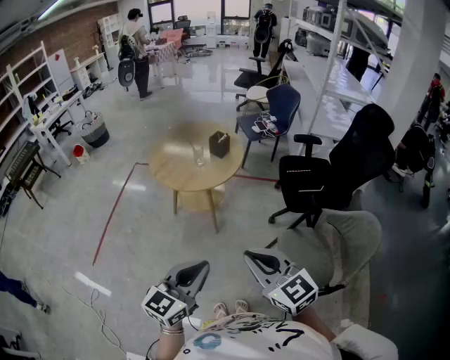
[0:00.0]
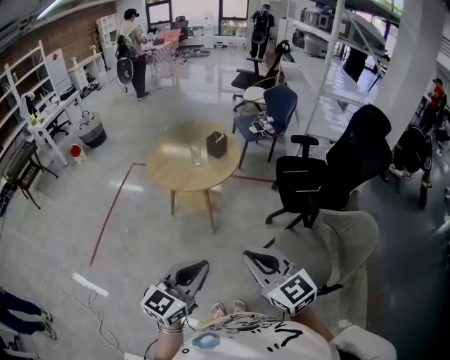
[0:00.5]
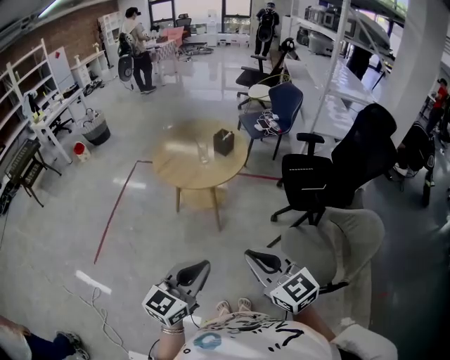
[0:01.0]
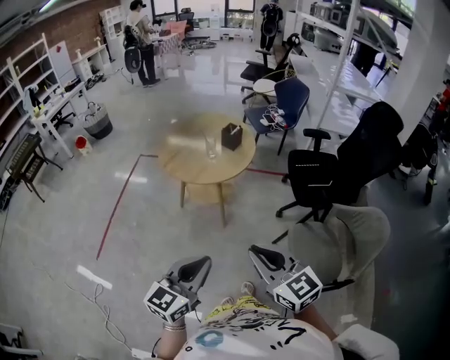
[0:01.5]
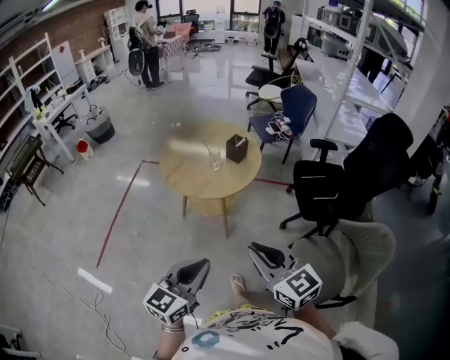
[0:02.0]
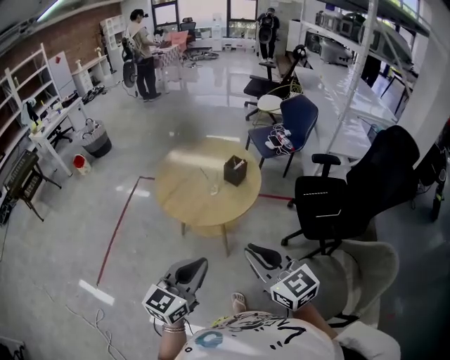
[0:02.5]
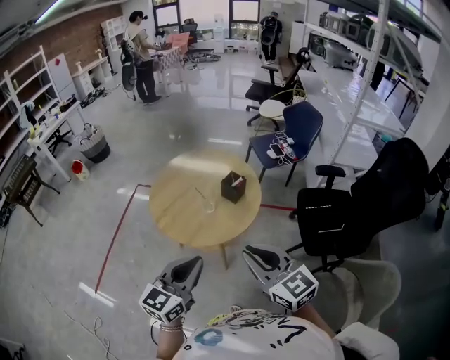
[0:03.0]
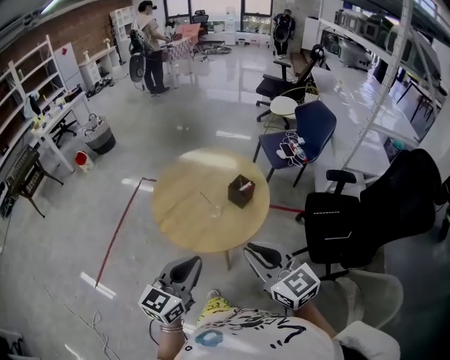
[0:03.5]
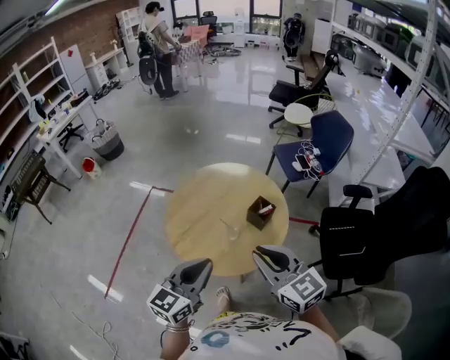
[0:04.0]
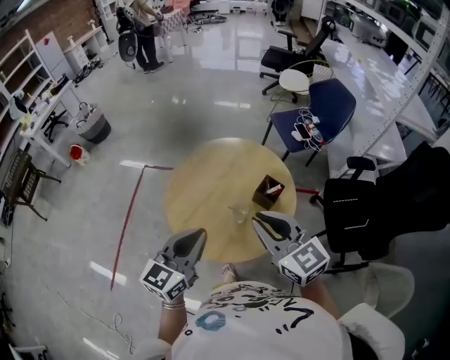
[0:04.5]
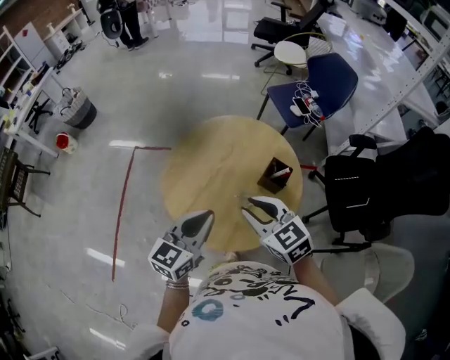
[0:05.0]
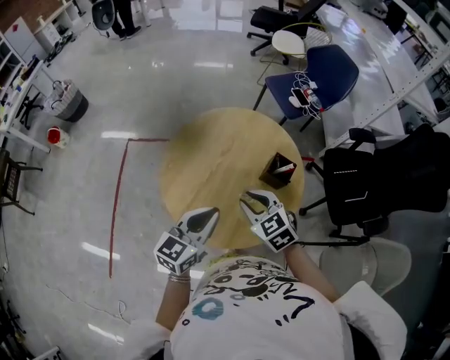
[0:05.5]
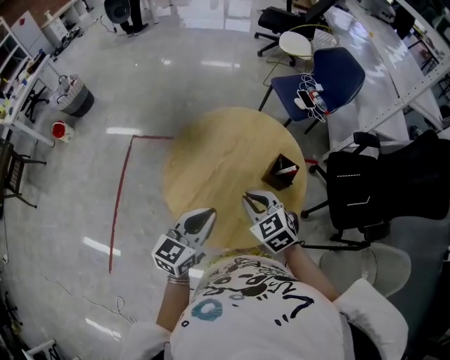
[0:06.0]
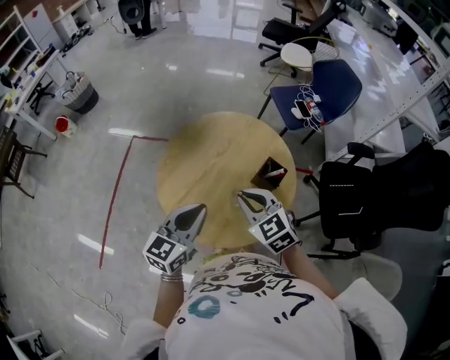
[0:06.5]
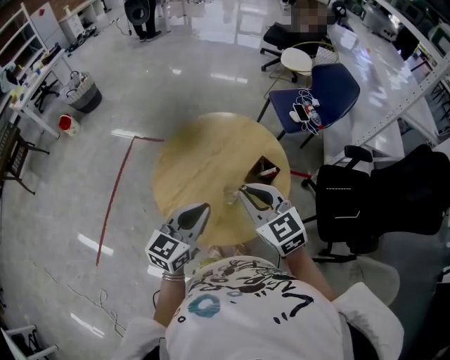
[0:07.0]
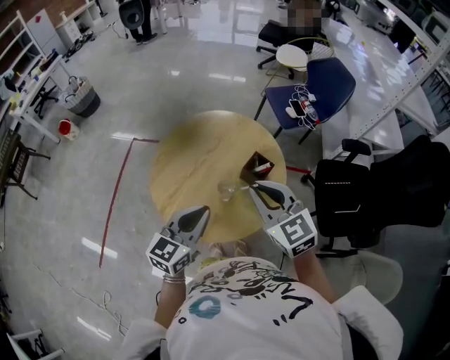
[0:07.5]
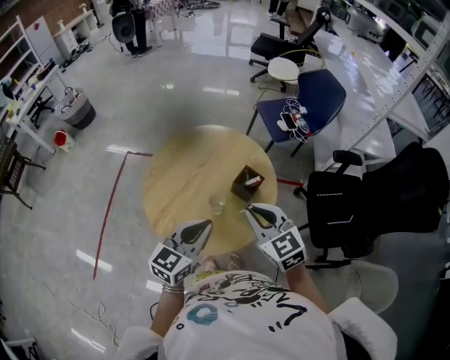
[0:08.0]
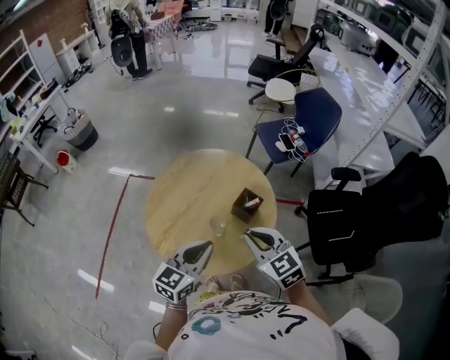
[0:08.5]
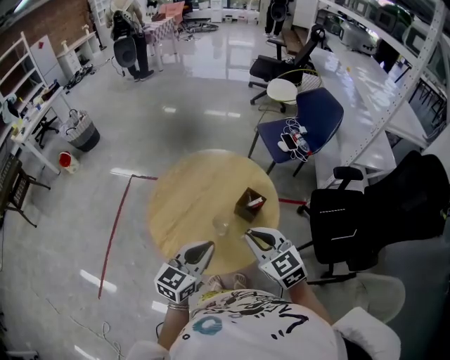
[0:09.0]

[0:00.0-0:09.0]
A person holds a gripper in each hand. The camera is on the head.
0:00.0 to 0:02.0: Both grippers move forward and to the left, about 10 cm.
0:02.0 to 0:04.5: The pair of grippers is taken forward, approximately 50 cm.
0:04.5 to 0:07.0: The right gripper travels downward and forward by about 10 cm. Meanwhile the left gripper goes about 5 cm downward.
0:07.0 to 0:09.0: The right gripper travels to the right by some 5 cm; the left gripper ends up about 5 cm from where it was.

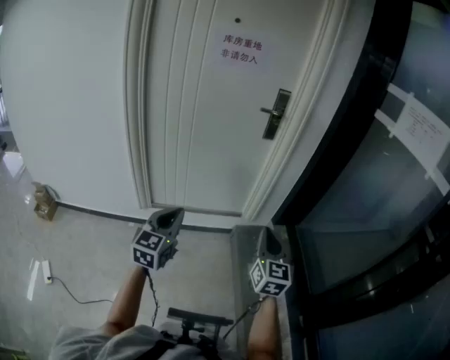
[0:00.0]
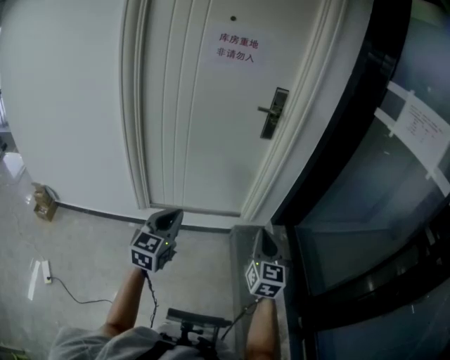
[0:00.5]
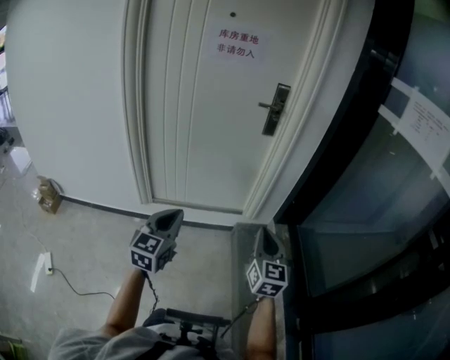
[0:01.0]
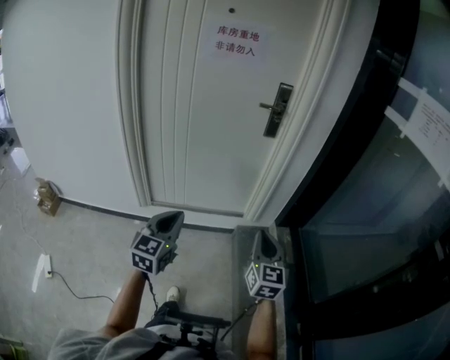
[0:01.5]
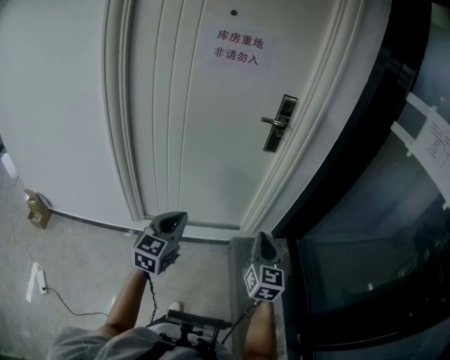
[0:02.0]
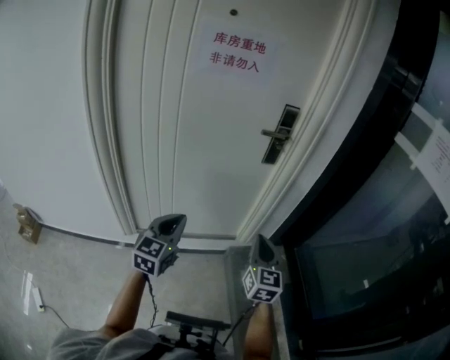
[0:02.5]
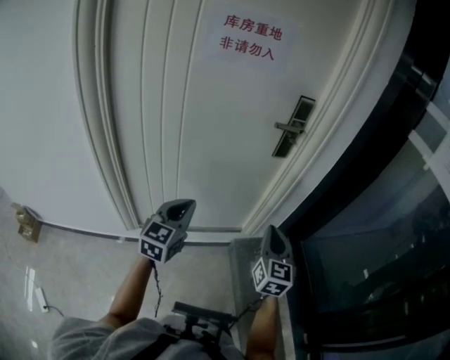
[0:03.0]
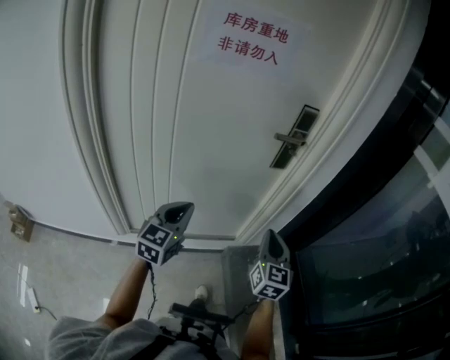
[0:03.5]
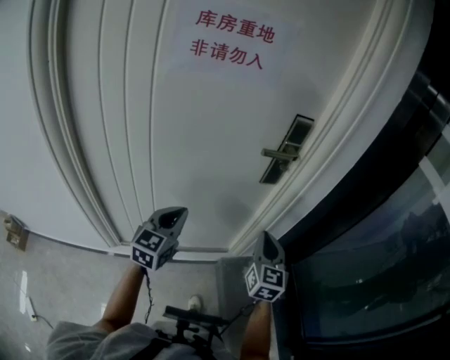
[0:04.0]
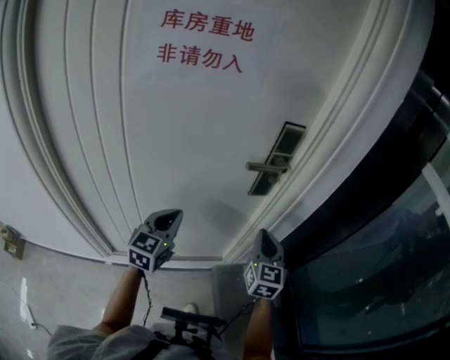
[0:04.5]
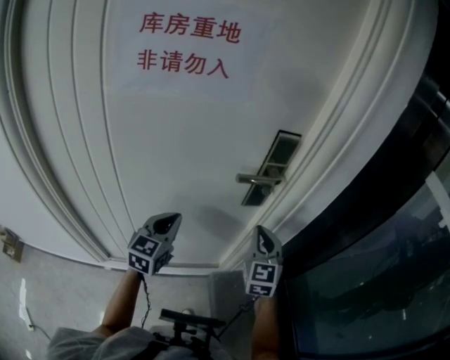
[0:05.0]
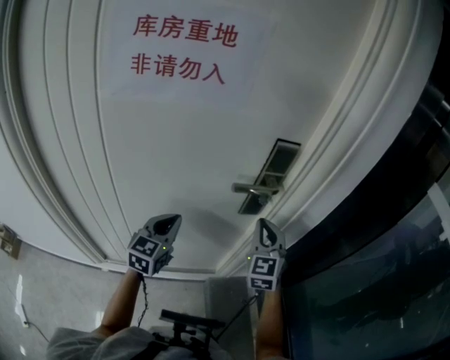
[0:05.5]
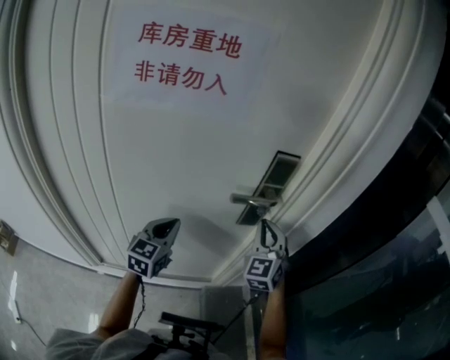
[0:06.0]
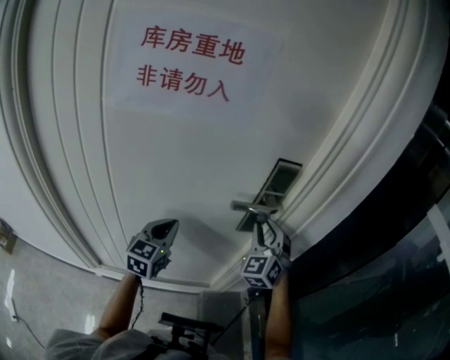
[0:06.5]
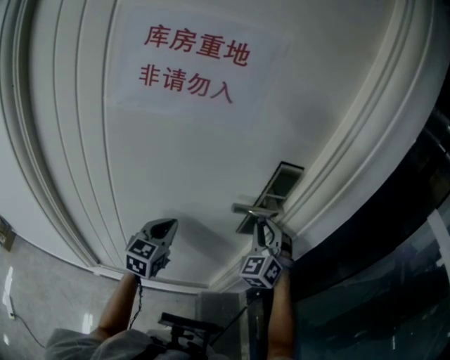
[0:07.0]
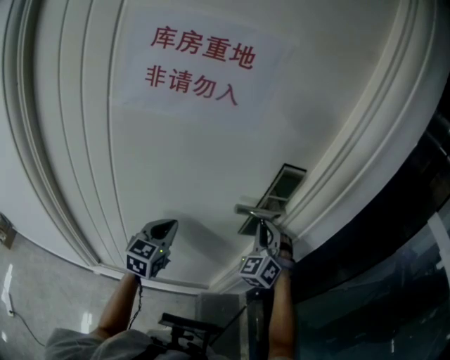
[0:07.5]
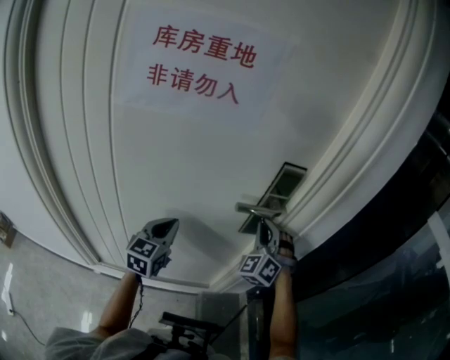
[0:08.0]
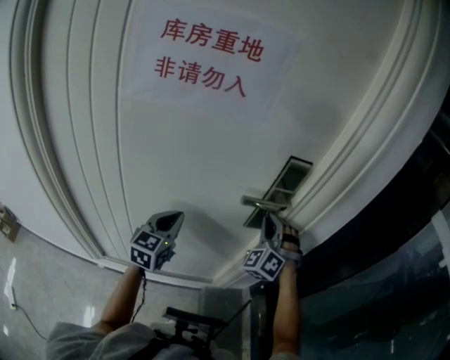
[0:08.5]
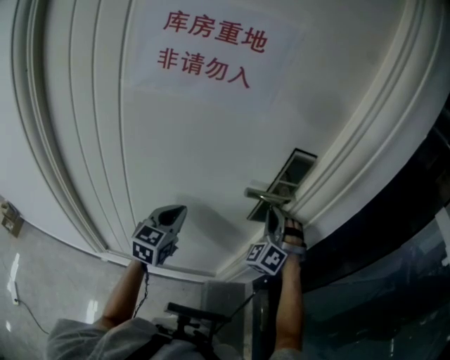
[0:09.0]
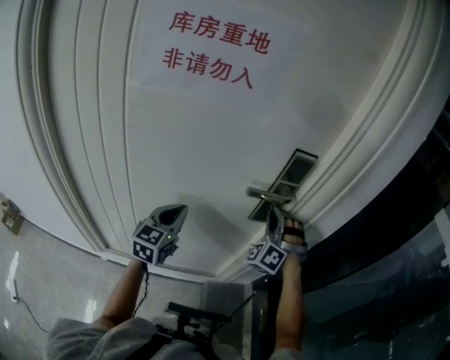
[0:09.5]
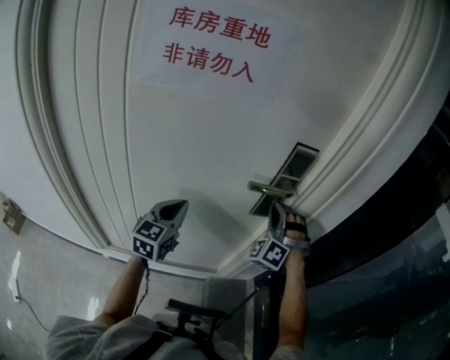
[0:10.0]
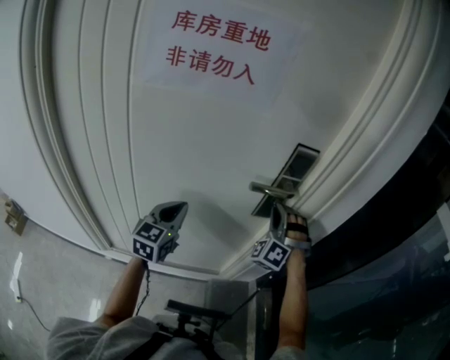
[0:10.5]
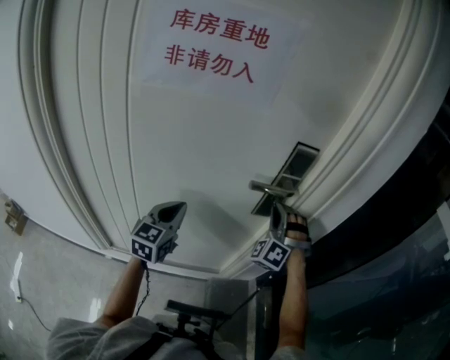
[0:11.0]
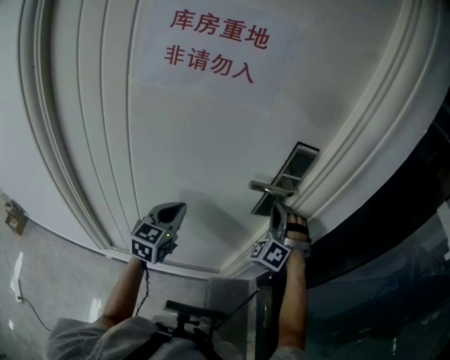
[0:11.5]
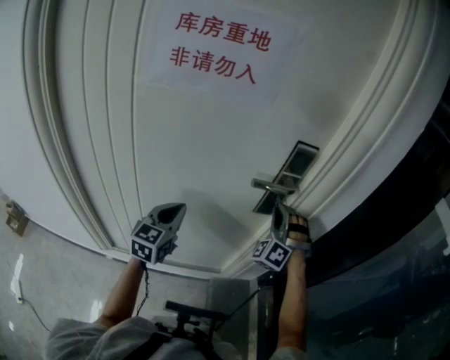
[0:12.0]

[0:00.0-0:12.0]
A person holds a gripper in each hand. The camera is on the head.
0:00.0 to 0:02.0: Both grippers move forward, approximately 15 cm.
0:02.0 to 0:04.0: The grippers both shift forward by some 30 cm.
0:04.0 to 0:06.0: The two grippers go about 20 cm forward. The right gripper turns by about 30 degrees.
0:06.0 to 0:08.0: The right gripper rotates roughly 30 degrees.
0:10.0 to 0:12.0: The grippers make only small movements.

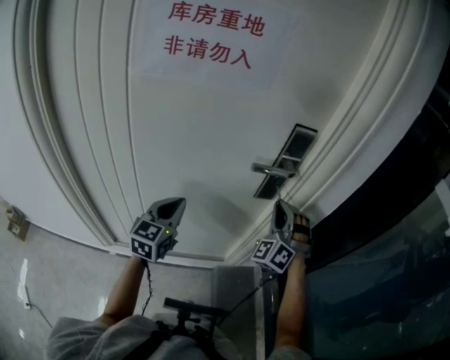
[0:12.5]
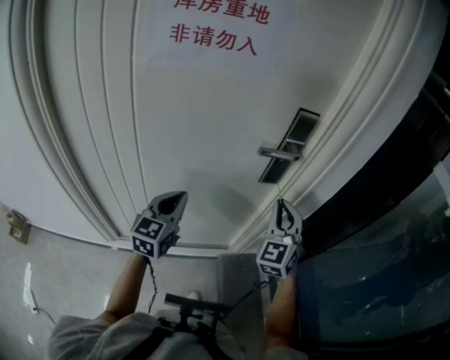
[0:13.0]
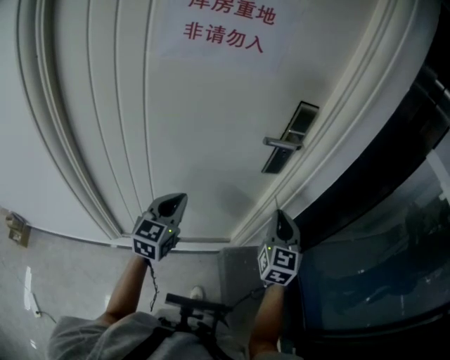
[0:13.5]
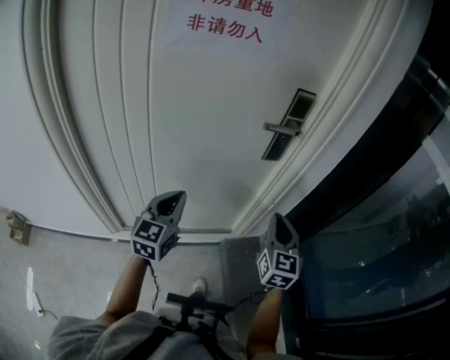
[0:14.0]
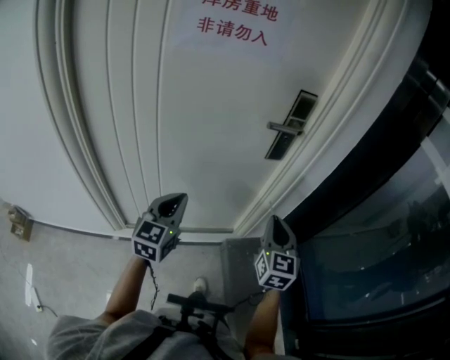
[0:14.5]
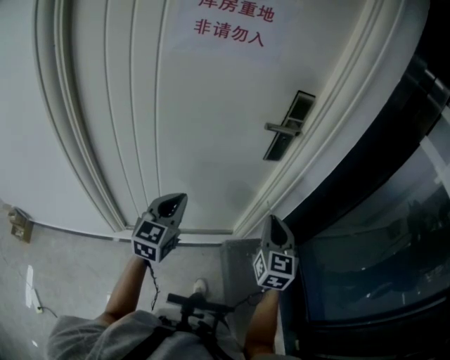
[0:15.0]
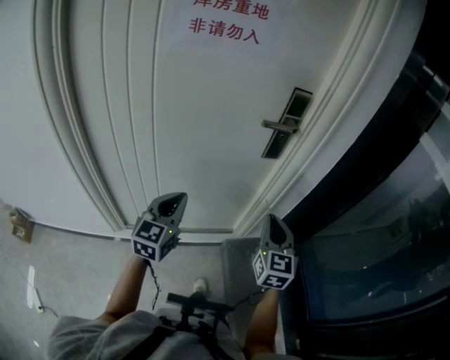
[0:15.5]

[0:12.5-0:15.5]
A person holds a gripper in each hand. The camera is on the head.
0:12.5 to 0:14.0: The left gripper goes roughly 10 cm backward, while the right gripper shifts about 20 cm backward, and rolls clockwise, seen from behind, by approximately 70 degrees.
0:14.0 to 0:15.5: There are only small adjustments of the grippers.

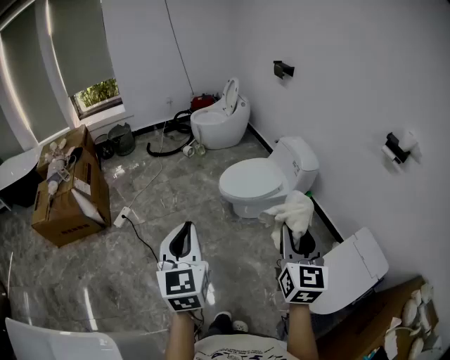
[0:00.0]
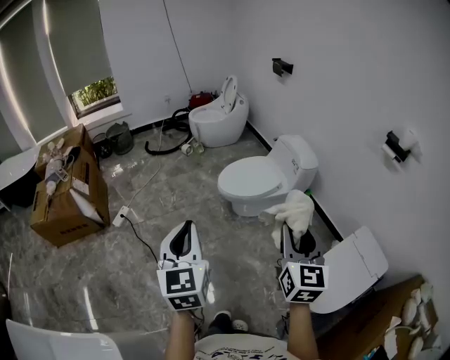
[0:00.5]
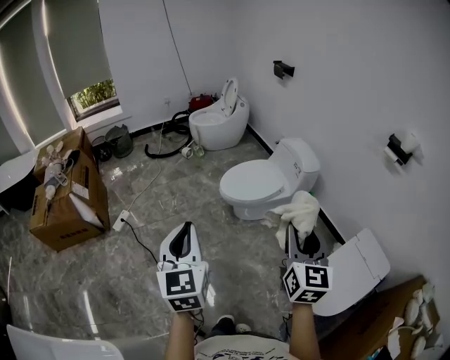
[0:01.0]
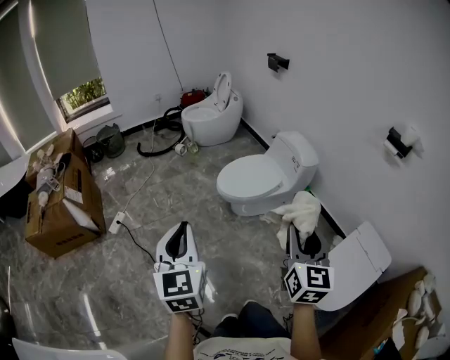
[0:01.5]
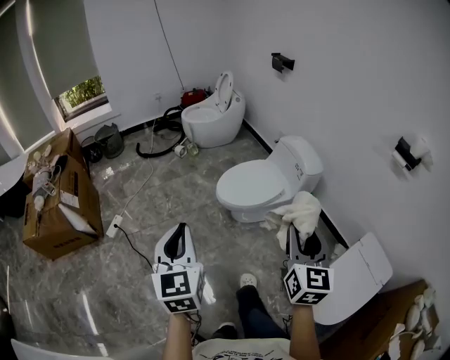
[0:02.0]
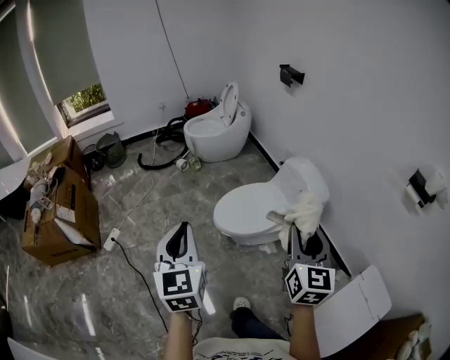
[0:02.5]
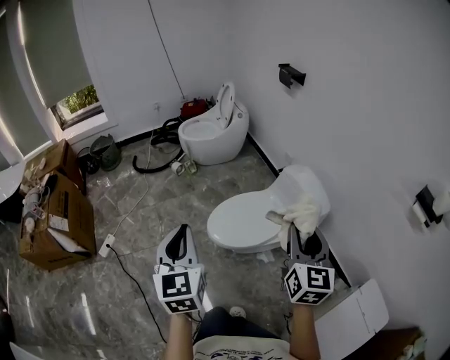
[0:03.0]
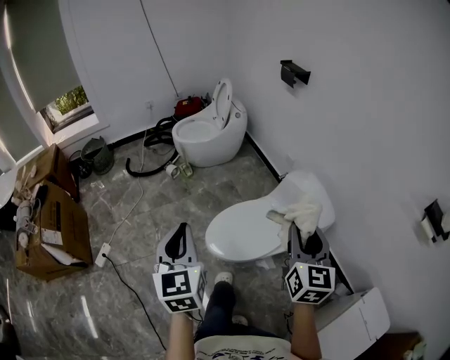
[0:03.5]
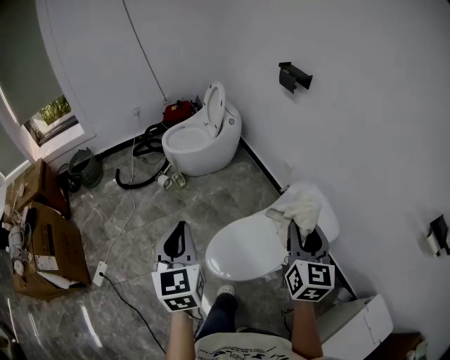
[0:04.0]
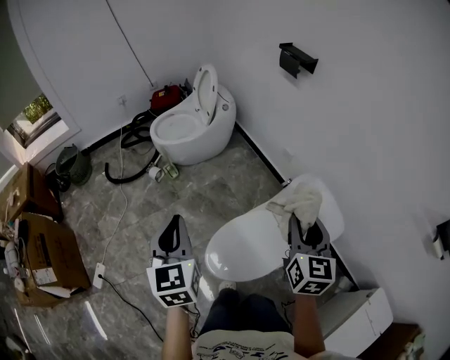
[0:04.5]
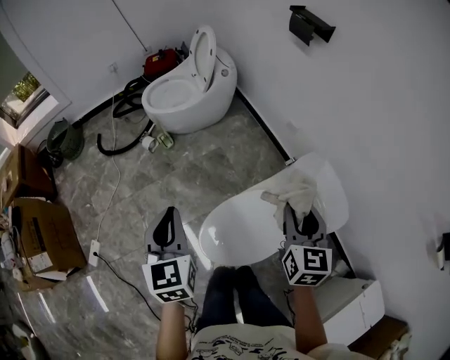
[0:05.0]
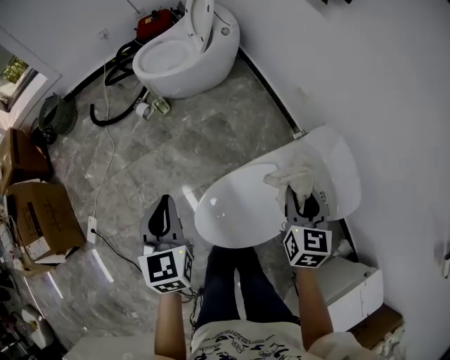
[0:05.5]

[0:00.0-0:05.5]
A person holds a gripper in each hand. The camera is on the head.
0:00.0 to 0:02.0: The two grippers go roughly 15 cm forward.
0:02.0 to 0:03.5: The two grippers go some 40 cm forward.
0:03.5 to 0:05.5: The two grippers go approximately 35 cm forward and downward. The right gripper turns by about 20 degrees.
